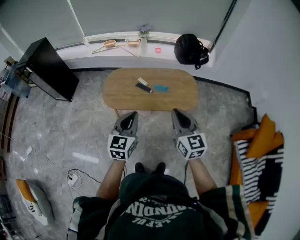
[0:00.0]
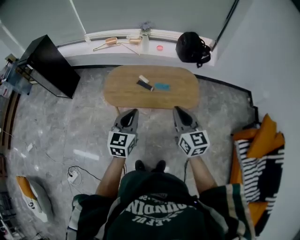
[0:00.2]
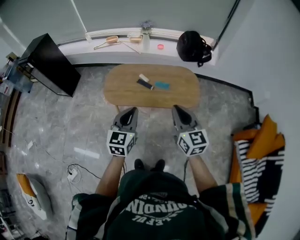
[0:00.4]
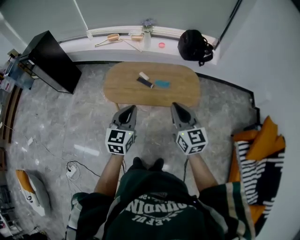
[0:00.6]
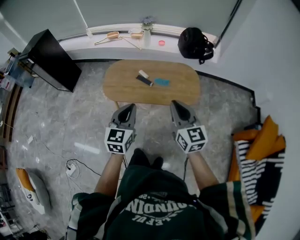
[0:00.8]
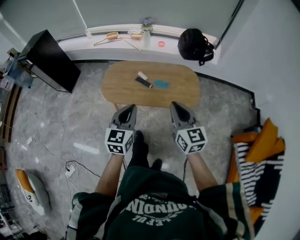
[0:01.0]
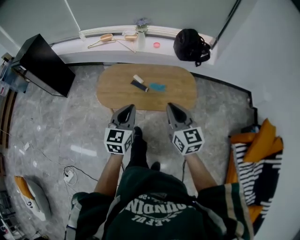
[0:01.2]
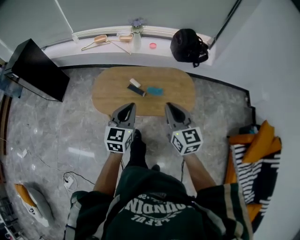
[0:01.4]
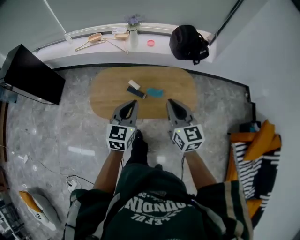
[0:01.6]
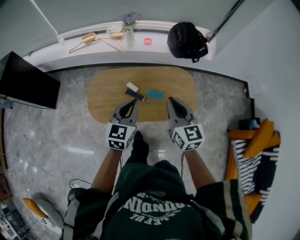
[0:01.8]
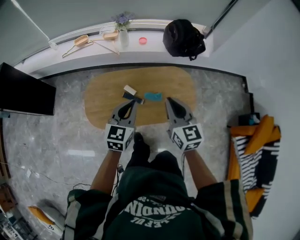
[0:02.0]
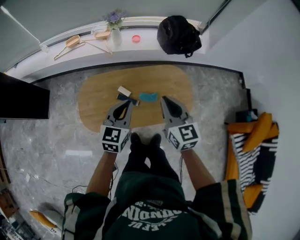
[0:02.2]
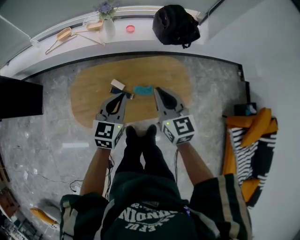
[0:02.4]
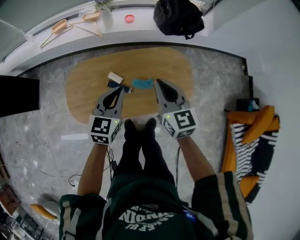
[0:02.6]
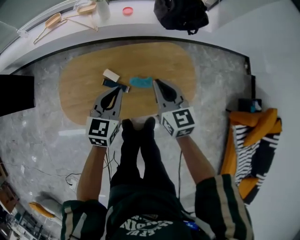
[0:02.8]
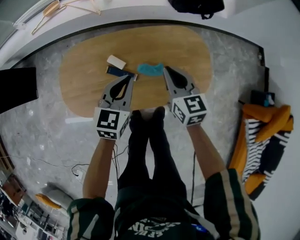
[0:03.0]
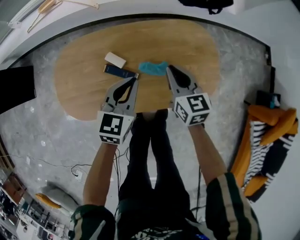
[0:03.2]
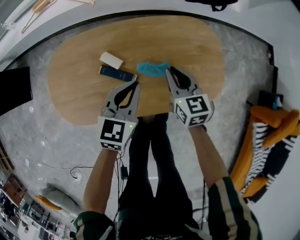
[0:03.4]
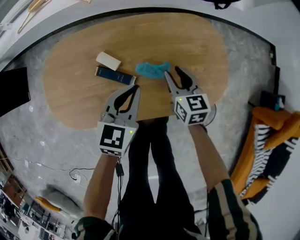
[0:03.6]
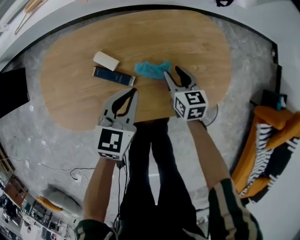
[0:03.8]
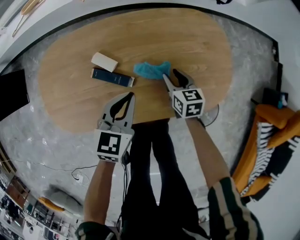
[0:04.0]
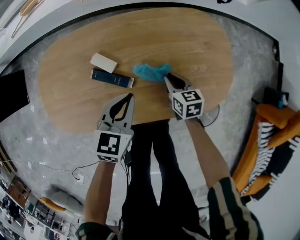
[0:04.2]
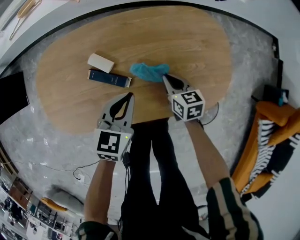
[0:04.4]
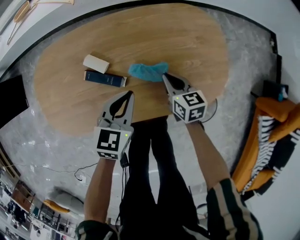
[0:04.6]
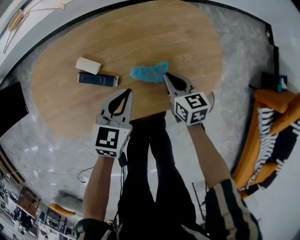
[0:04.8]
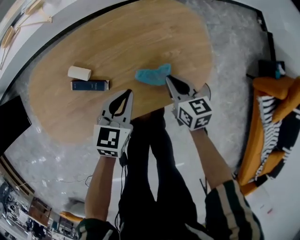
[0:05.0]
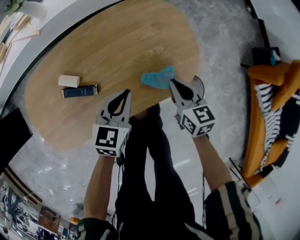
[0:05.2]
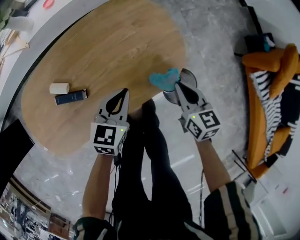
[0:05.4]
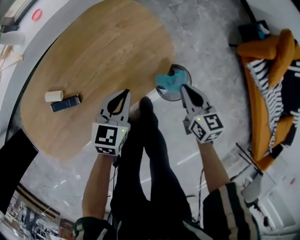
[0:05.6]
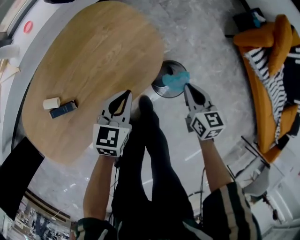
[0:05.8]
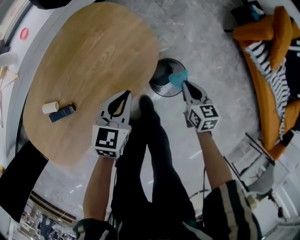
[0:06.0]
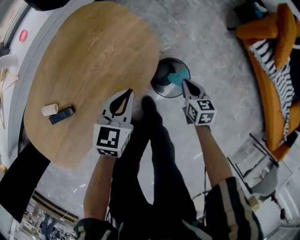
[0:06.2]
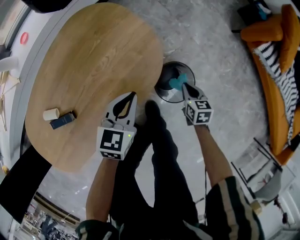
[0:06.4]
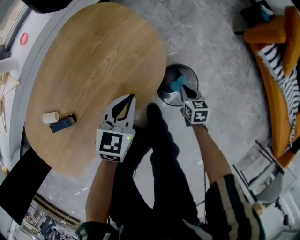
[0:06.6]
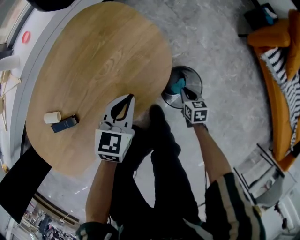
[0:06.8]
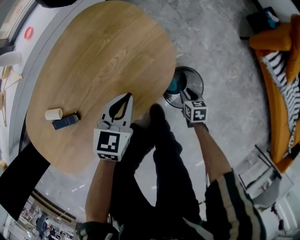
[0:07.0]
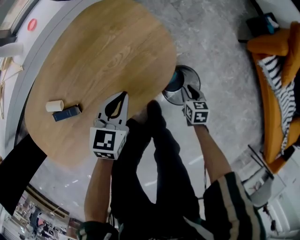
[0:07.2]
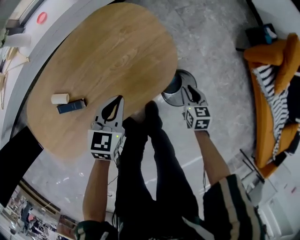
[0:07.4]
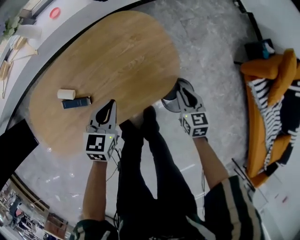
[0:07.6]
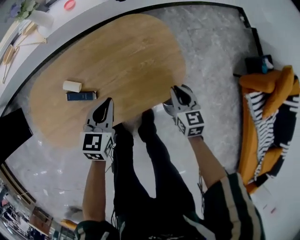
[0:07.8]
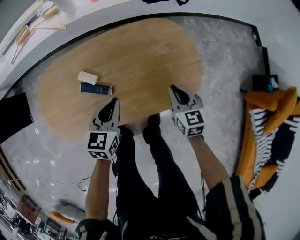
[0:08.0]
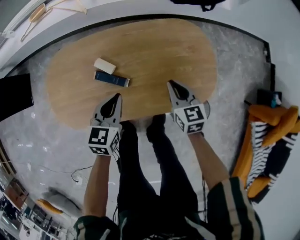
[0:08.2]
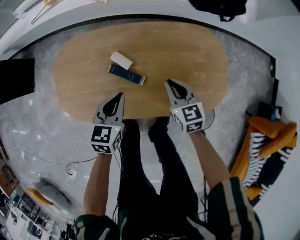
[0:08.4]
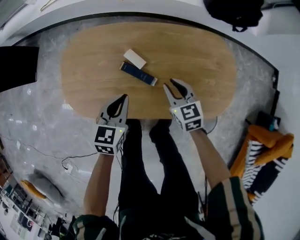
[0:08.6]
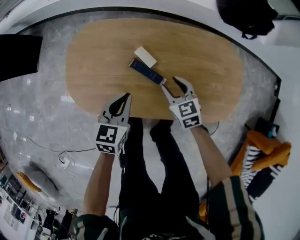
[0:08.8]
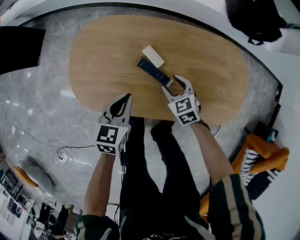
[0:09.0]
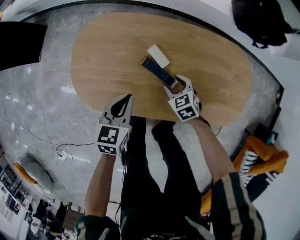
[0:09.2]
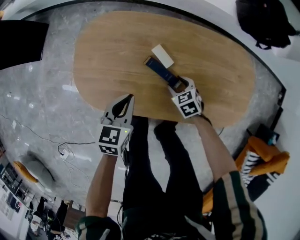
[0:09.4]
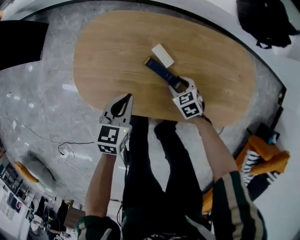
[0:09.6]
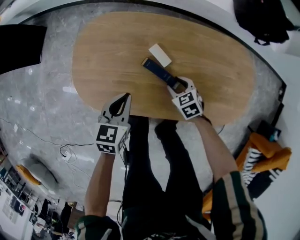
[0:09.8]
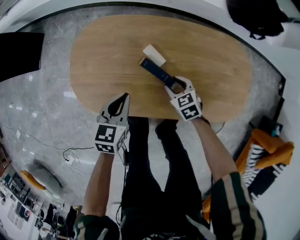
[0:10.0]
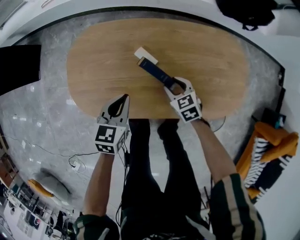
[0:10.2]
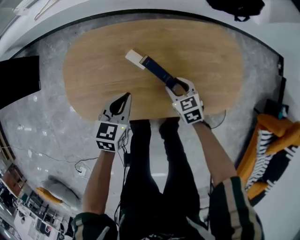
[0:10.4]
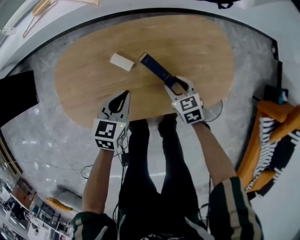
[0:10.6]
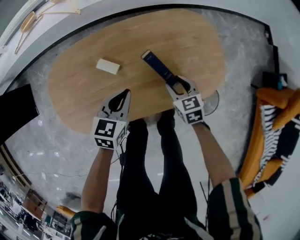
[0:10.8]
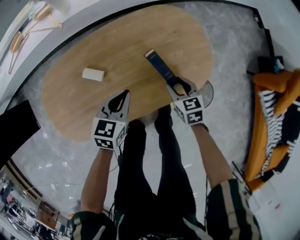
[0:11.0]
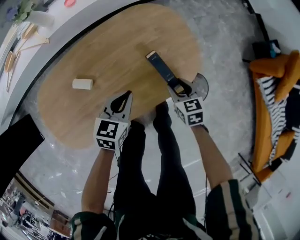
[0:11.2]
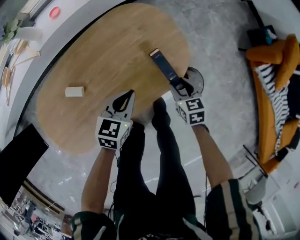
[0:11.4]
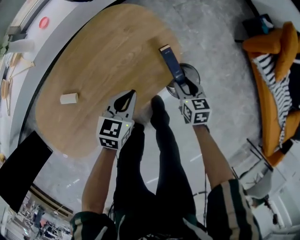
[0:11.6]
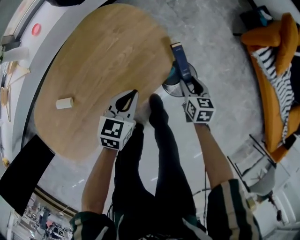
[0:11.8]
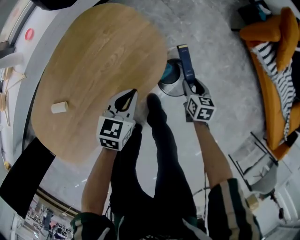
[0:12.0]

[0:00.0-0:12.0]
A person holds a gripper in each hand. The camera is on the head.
0.0 to 1.6 s: Both grippers move forward, about 25 cm.
1.6 to 3.0 s: The grippers both shift downward and forward by roughly 35 cm.
3.0 to 4.4 s: The right gripper shifts about 30 cm downward, changes its angle by about 20 degrees, and opens, then closes once more, while the left gripper goes about 15 cm downward.
4.4 to 6.0 s: The left gripper shifts by about 30 cm, and turns by roughly 30 degrees. Meanwhile the right gripper goes upward and returns, about 10 cm each way, and rotates roughly 40 degrees.
6.0 to 7.6 s: The grippers both shift to the left by roughly 10 cm. The right gripper travels downward and back again, approximately 20 cm each way.
7.6 to 9.0 s: The right gripper moves approximately 5 cm upward and comes back, turns by about 60 degrees, and opens. The left gripper ends up approximately 30 cm from where it was, and swivels roughly 30 degrees.
9.0 to 10.4 s: The right gripper travels to the right by some 5 cm, and goes downward and returns, approximately 5 cm each way.
10.4 to 12.0 s: The pair of grippers is taken roughly 40 cm. The left gripper changes its angle by some 40 degrees. Meanwhile the right gripper rolls clockwise, seen from behind, by about 60 degrees.

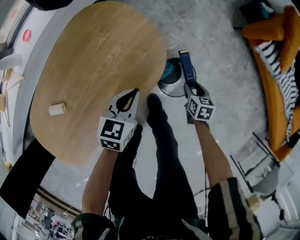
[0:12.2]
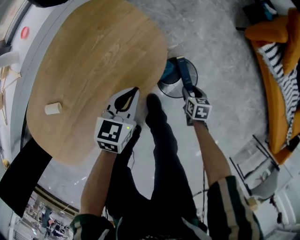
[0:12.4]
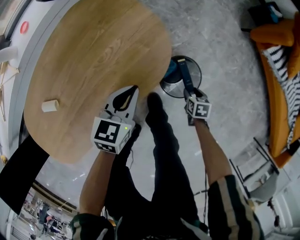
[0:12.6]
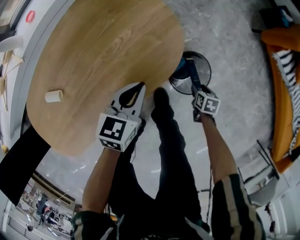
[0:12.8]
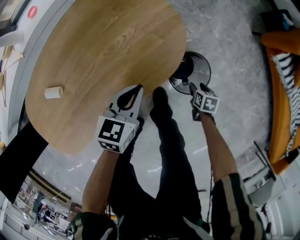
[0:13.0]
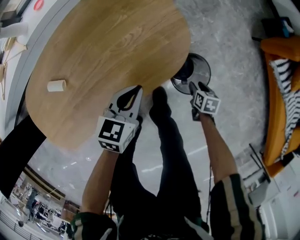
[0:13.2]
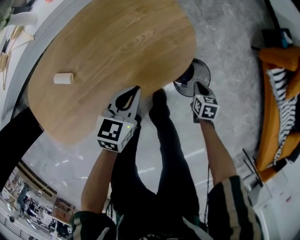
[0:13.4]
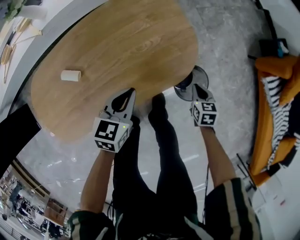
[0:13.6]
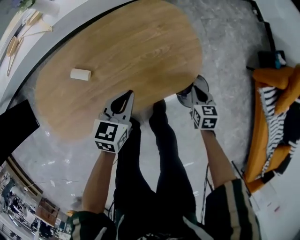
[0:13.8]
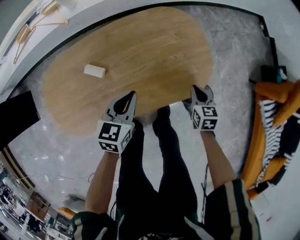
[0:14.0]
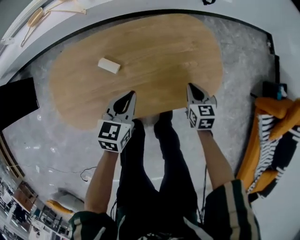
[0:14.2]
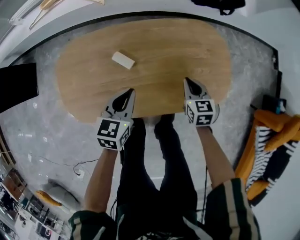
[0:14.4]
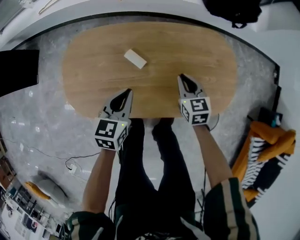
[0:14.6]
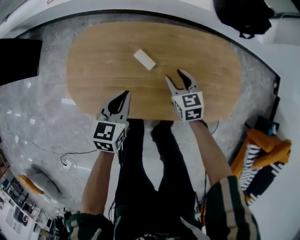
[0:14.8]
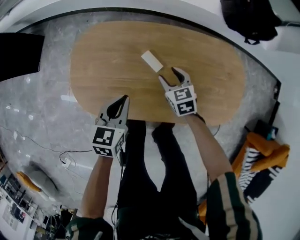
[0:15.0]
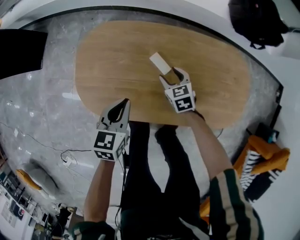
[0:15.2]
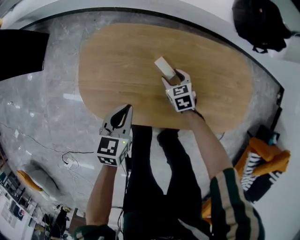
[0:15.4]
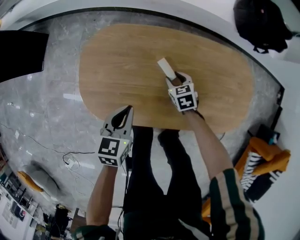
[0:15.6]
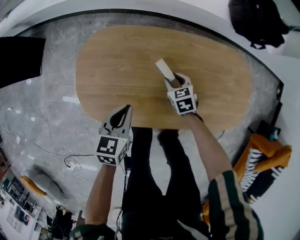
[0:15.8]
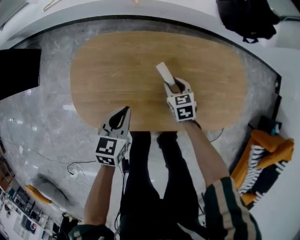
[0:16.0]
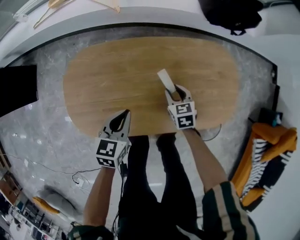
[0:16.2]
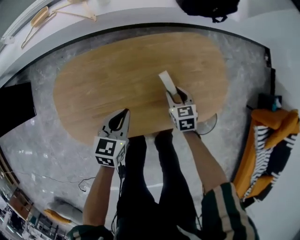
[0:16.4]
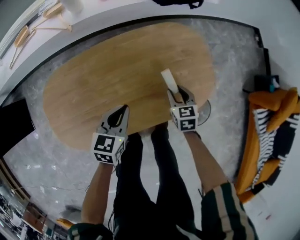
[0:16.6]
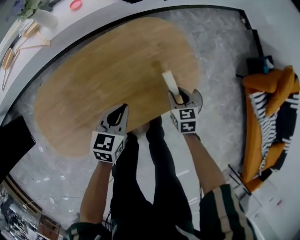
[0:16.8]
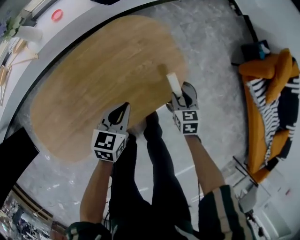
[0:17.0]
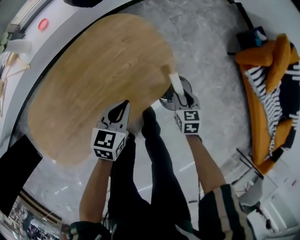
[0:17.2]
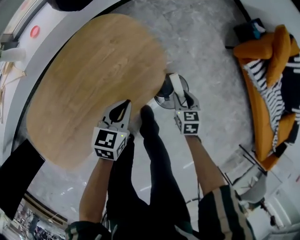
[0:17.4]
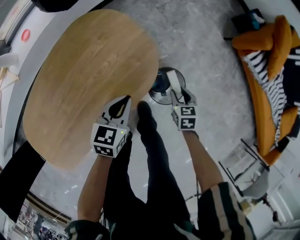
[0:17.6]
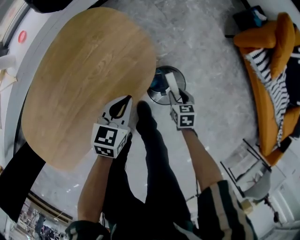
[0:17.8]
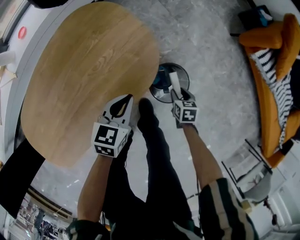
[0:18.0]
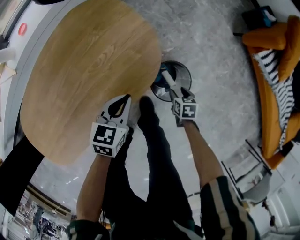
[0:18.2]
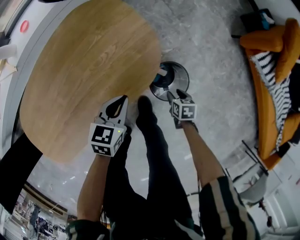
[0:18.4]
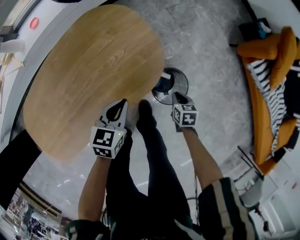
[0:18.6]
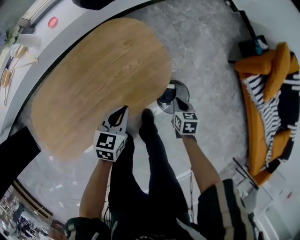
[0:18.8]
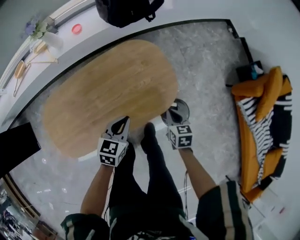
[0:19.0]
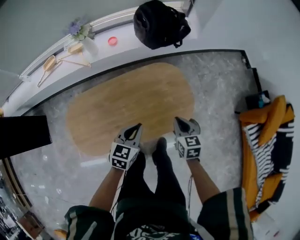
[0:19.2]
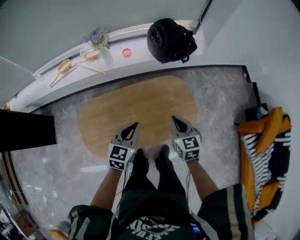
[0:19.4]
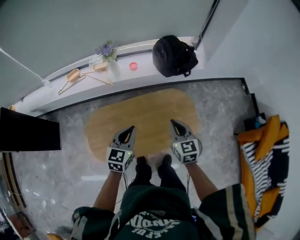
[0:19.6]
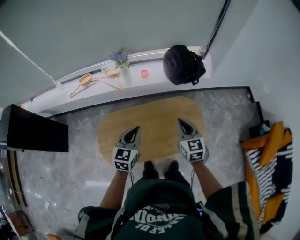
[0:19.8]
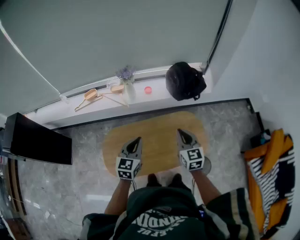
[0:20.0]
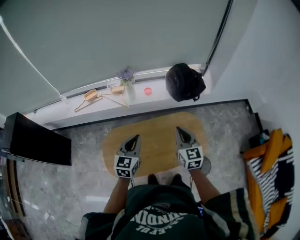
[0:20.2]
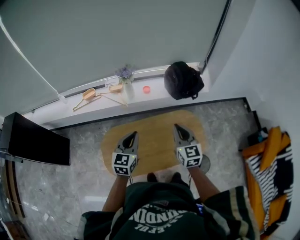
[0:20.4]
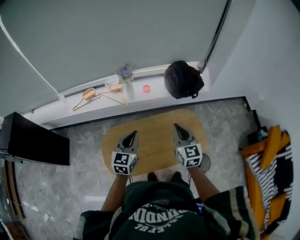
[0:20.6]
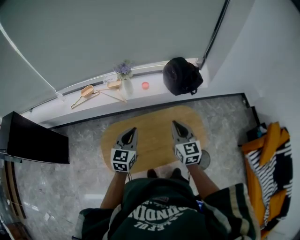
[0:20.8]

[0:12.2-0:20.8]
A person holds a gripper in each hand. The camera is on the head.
12.2 to 13.6 s: The right gripper shifts some 10 cm to the left, travels downward and back again, about 10 cm each way, changes its angle by approximately 30 degrees, and closes. The left gripper goes approximately 15 cm to the left and backward.
13.6 to 15.0 s: The right gripper changes place by about 50 cm, turns by approximately 50 degrees, and opens its fingers. The left gripper moves roughly 35 cm, and turns by approximately 40 degrees.
15.0 to 16.6 s: The right gripper changes place by approximately 25 cm, and swivels approximately 40 degrees; the left gripper changes place by about 20 cm, and rotates roughly 30 degrees.
16.6 to 18.0 s: The left gripper moves some 35 cm, and turns by approximately 30 degrees. The right gripper shifts by approximately 40 cm, and turns by about 40 degrees.
18.0 to 19.4 s: The two grippers go about 40 cm upward. The left gripper rotates some 30 degrees. The right gripper tips its fingers upward by about 30 degrees, and closes.
19.4 to 20.8 s: The right gripper goes approximately 20 cm upward and to the left; the left gripper heads to the left and upward, covering about 20 cm.

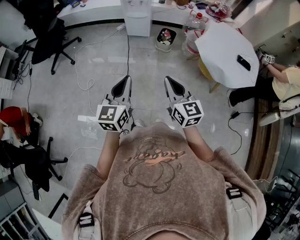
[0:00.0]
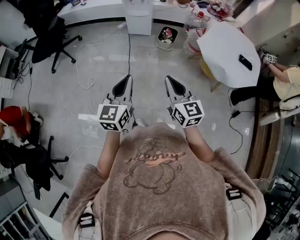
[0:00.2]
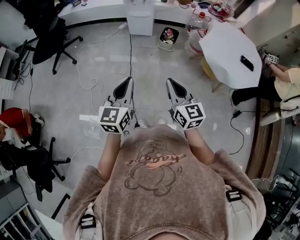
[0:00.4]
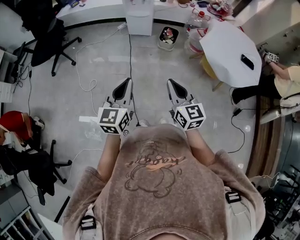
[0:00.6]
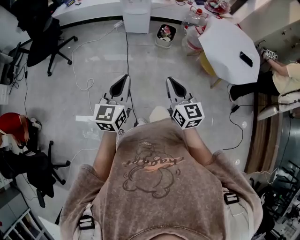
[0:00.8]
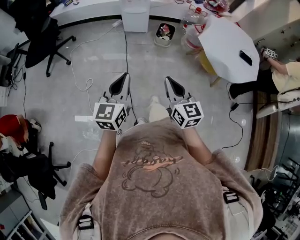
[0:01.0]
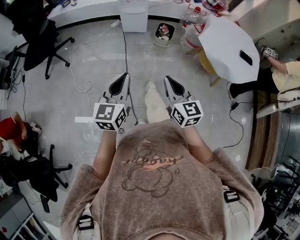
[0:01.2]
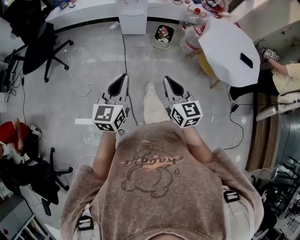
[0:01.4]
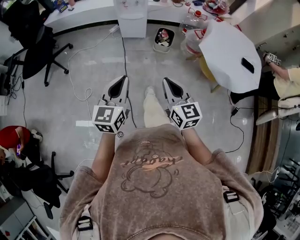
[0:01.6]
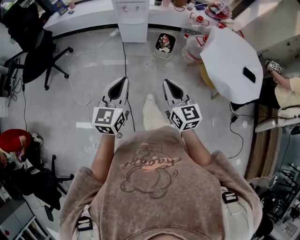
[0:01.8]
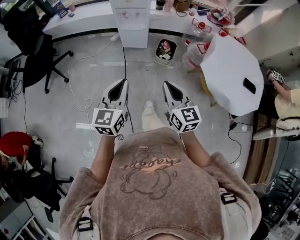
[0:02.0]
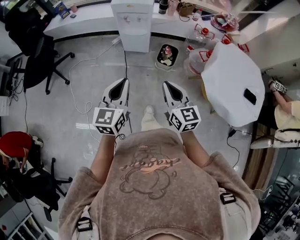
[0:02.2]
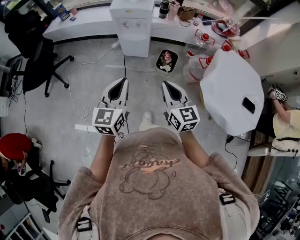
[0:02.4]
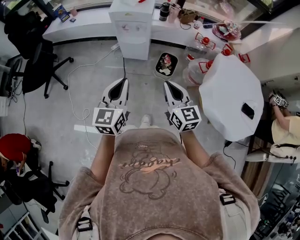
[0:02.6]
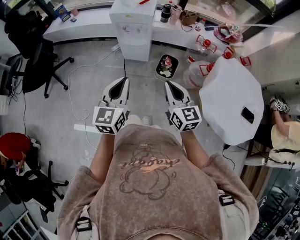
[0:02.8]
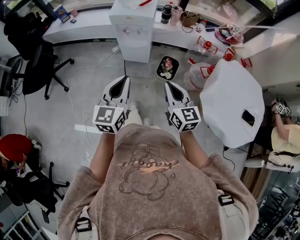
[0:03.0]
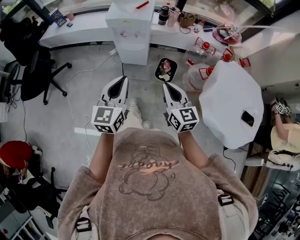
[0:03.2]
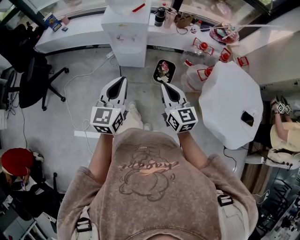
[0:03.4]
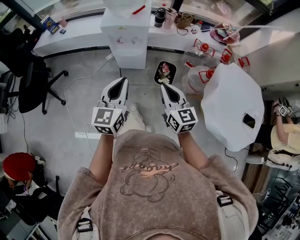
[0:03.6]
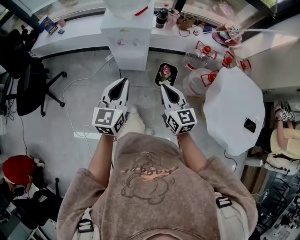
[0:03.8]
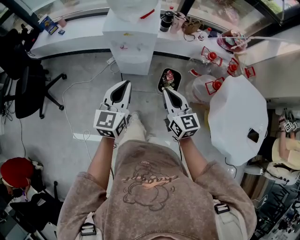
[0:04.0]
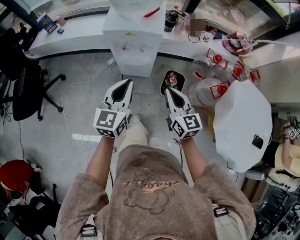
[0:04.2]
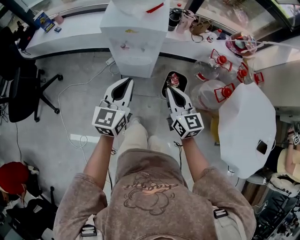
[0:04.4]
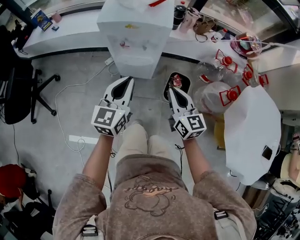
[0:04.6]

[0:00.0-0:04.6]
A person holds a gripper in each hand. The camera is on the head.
0.0 to 1.6 s: The two grippers go roughly 10 cm forward and to the left.
1.6 to 3.0 s: Both grippers travel together forward, about 30 cm.
3.0 to 4.6 s: Both grippers travel together forward and downward, approximately 35 cm.
